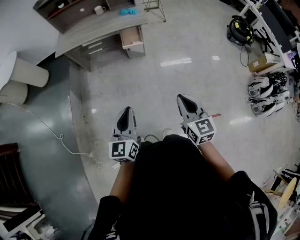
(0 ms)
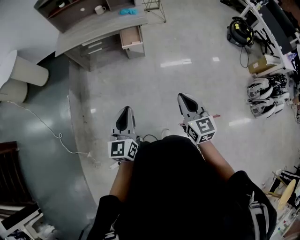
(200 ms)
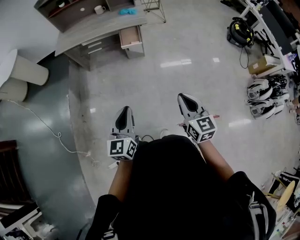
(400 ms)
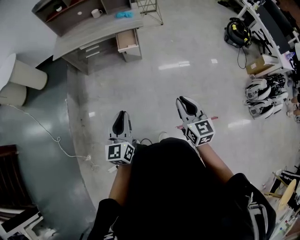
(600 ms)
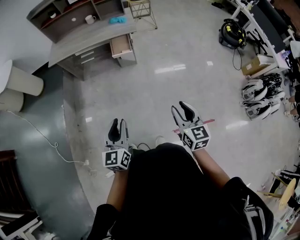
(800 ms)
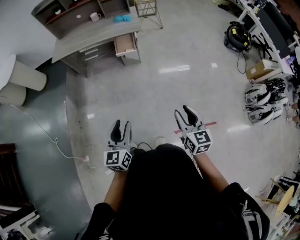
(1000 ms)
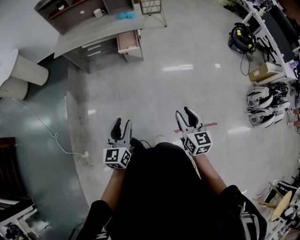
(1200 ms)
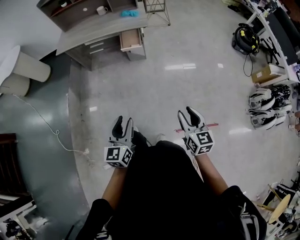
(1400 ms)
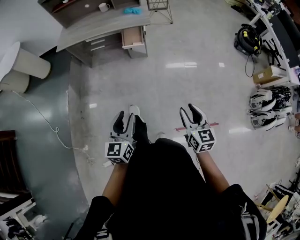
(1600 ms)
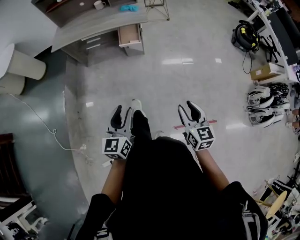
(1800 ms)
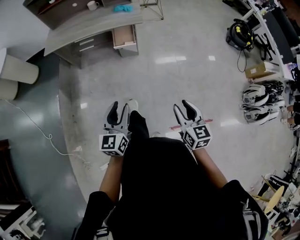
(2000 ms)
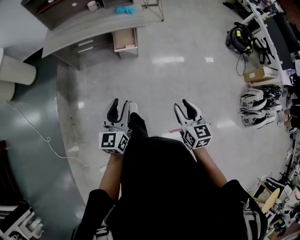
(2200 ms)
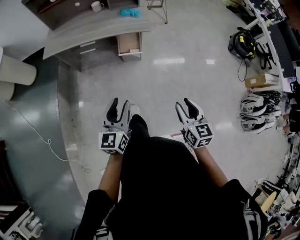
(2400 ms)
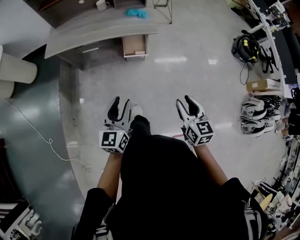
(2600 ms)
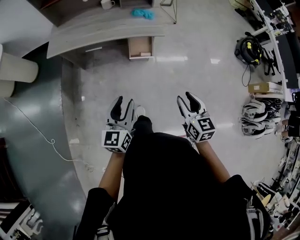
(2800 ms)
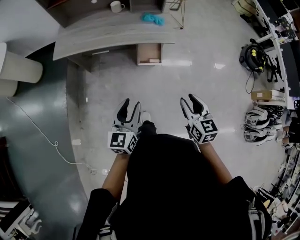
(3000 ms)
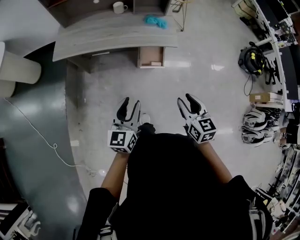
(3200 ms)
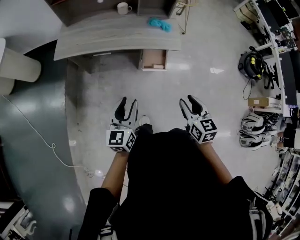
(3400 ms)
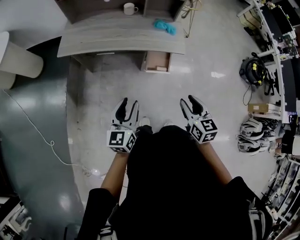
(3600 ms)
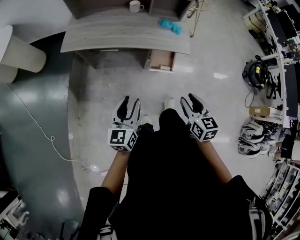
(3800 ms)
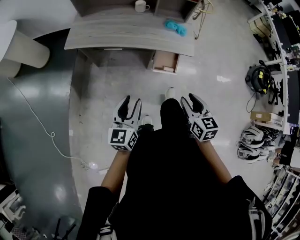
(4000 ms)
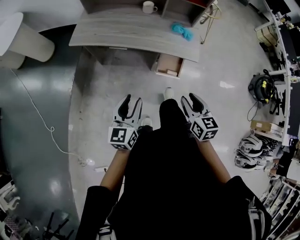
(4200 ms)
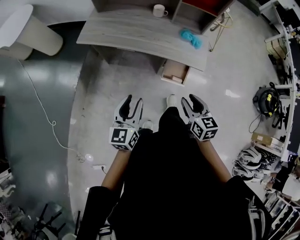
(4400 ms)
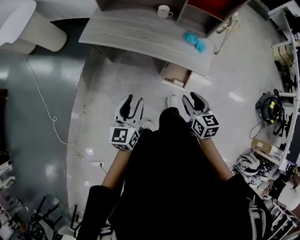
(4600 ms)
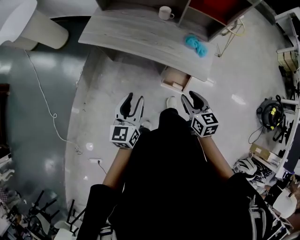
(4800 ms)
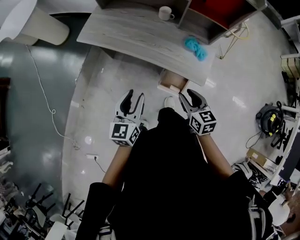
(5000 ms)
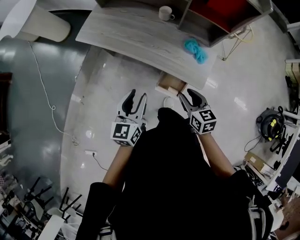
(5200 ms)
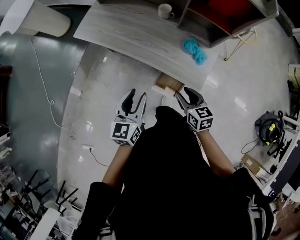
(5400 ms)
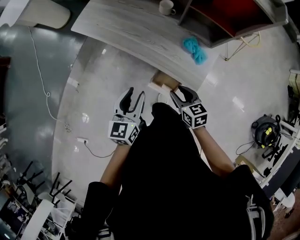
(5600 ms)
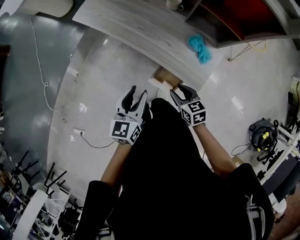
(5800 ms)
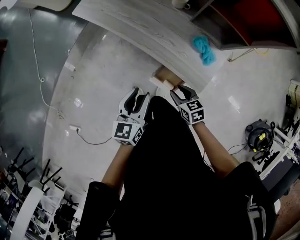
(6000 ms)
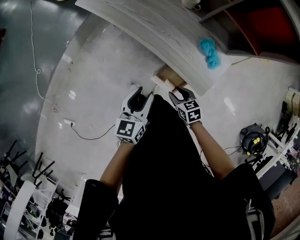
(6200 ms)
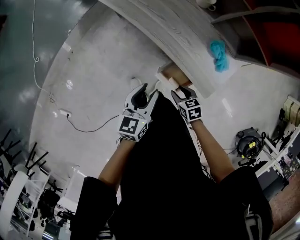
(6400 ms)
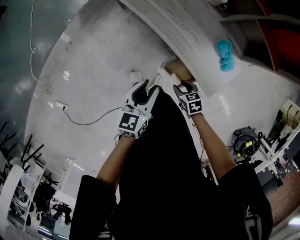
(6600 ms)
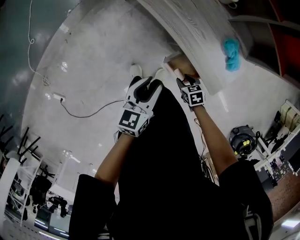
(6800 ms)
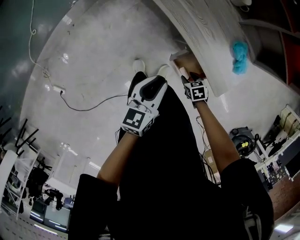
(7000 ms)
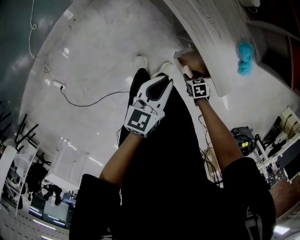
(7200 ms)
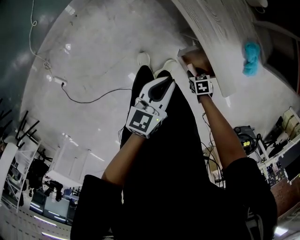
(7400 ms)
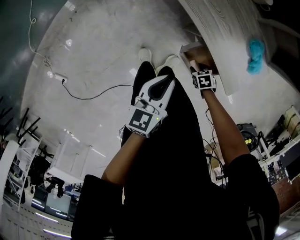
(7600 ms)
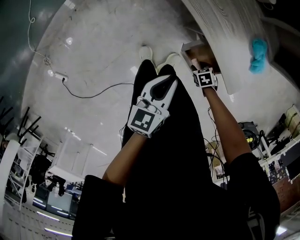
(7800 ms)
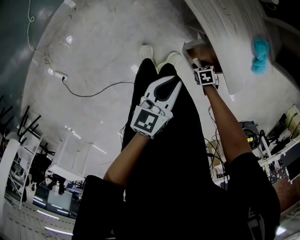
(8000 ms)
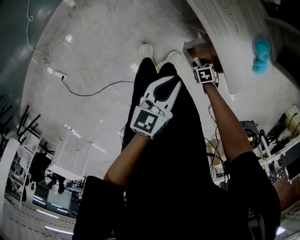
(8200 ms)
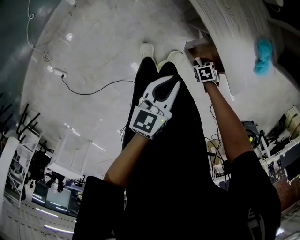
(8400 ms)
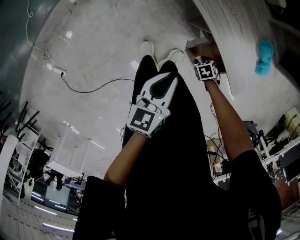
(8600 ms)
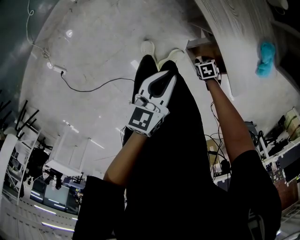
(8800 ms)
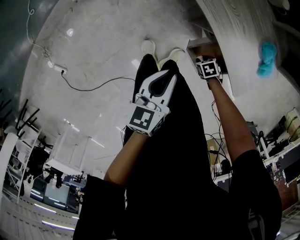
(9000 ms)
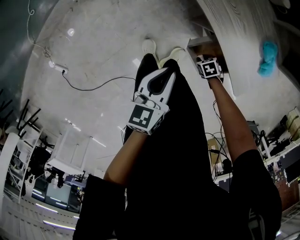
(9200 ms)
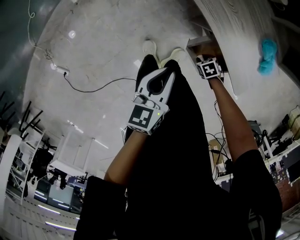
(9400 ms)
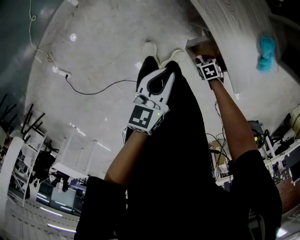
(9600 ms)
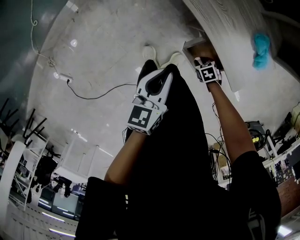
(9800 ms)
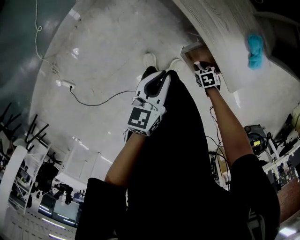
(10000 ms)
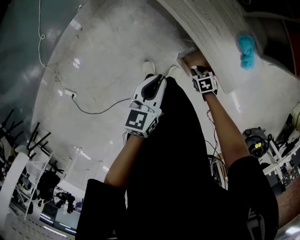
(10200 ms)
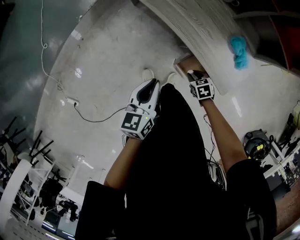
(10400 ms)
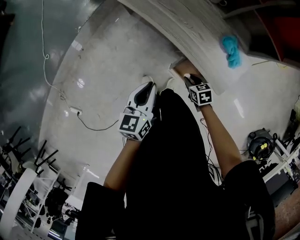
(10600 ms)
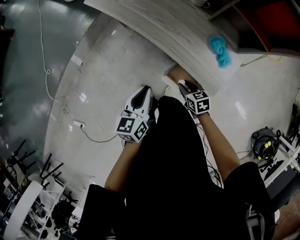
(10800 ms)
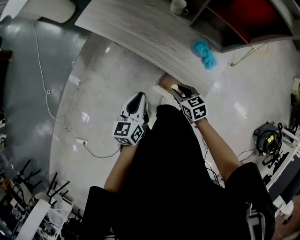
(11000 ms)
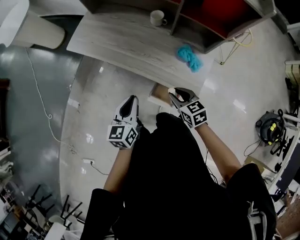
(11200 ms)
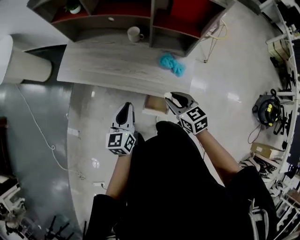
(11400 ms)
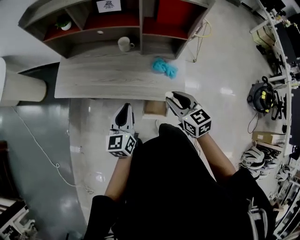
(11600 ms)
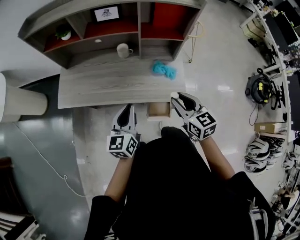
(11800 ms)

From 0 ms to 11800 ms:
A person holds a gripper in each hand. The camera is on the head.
From 0 ms to 1400 ms: The right gripper is displaced to the right and downward by some 15 cm, and opens up. The left gripper goes roughly 10 cm to the right and downward, and opens up.
From 1400 ms to 3000 ms: The pair of grippers is taken forward and to the left, some 40 cm.
From 3000 ms to 4400 ms: The two grippers go about 15 cm forward and to the left.
From 4400 ms to 6000 ms: The left gripper ends up approximately 25 cm from where it was, and turns by roughly 20 degrees. Meanwhile the right gripper changes place by some 30 cm, and turns by approximately 40 degrees.
From 6000 ms to 7400 ms: The right gripper shifts roughly 25 cm downward, and turns by some 30 degrees, while the left gripper heads downward, covering some 10 cm, and closes.
From 7400 ms to 8800 ms: The left gripper changes place by roughly 5 cm, while the right gripper goes some 5 cm downward.
From 8800 ms to 10400 ms: The left gripper heads upward, covering approximately 10 cm. The right gripper travels upward by about 15 cm, and turns by approximately 20 degrees.
From 10400 ms to 11800 ms: The left gripper moves upward, roughly 20 cm, and rotates roughly 40 degrees. The right gripper shifts some 50 cm upward, and tilts its fingers roughly 40 degrees upward.

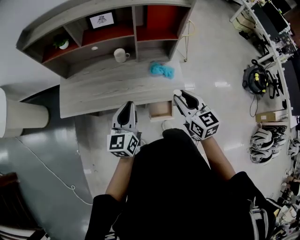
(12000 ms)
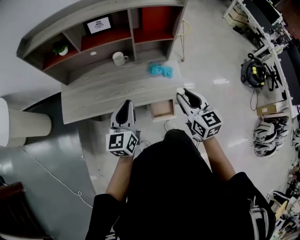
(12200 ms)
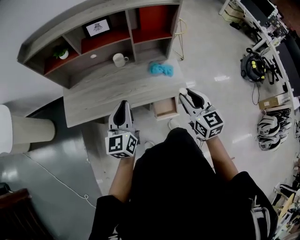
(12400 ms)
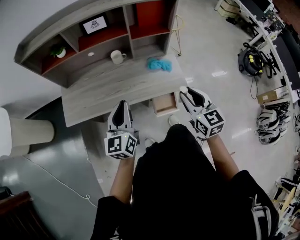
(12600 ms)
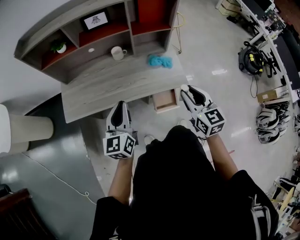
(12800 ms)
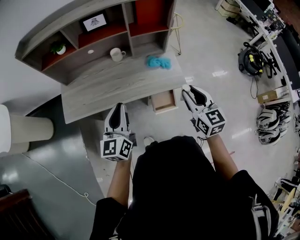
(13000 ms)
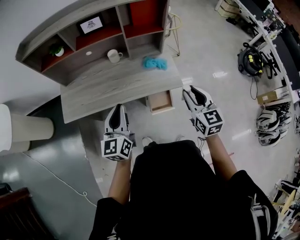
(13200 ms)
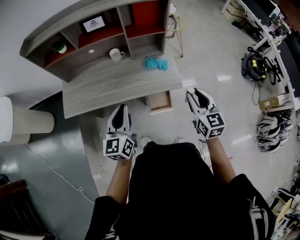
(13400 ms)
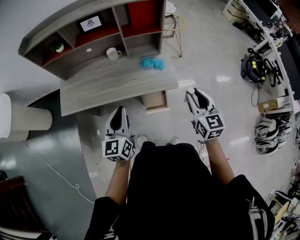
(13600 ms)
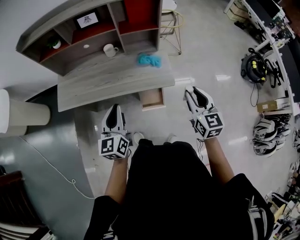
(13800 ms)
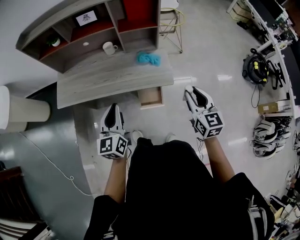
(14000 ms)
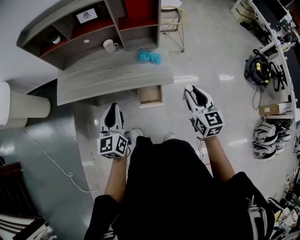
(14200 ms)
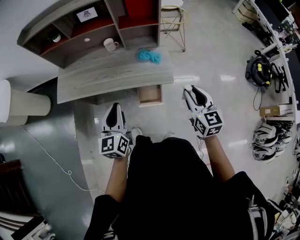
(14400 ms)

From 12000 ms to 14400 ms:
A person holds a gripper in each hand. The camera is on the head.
From 12000 ms to 13200 ms: The right gripper shifts some 10 cm backward and to the right; the left gripper goes about 10 cm backward.
From 13200 ms to 14400 ms: The right gripper travels to the right by roughly 15 cm, while the left gripper shifts roughly 10 cm to the right and backward.

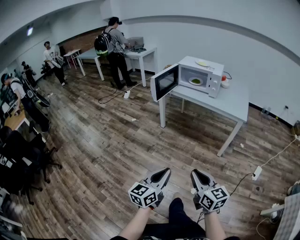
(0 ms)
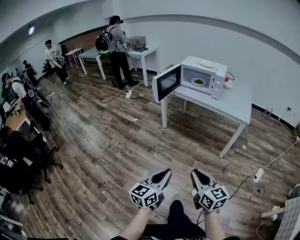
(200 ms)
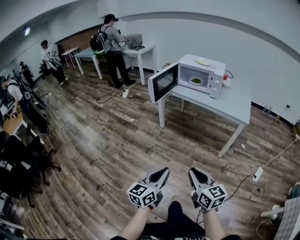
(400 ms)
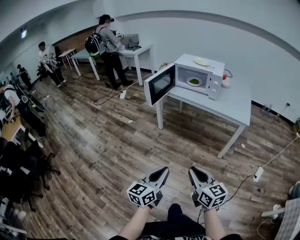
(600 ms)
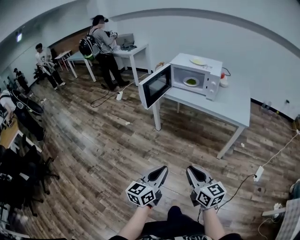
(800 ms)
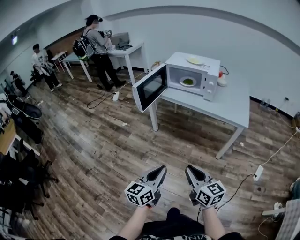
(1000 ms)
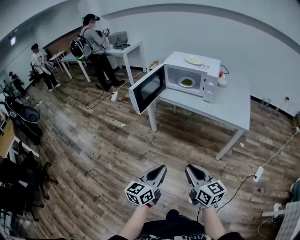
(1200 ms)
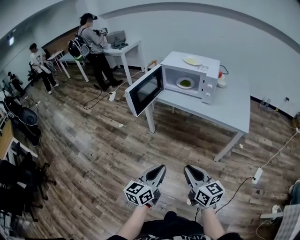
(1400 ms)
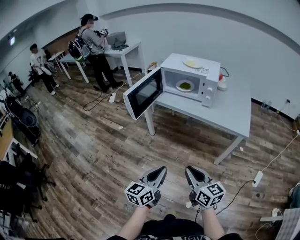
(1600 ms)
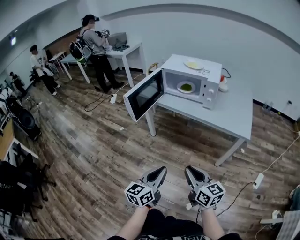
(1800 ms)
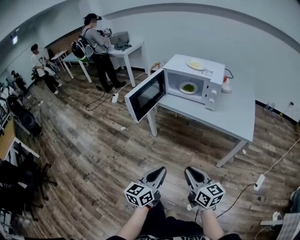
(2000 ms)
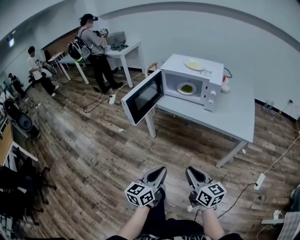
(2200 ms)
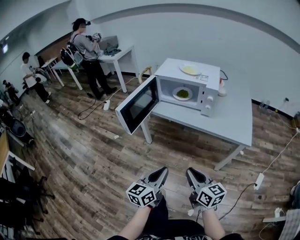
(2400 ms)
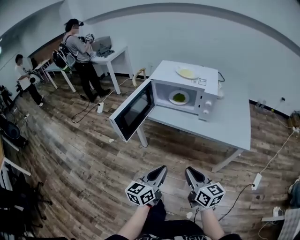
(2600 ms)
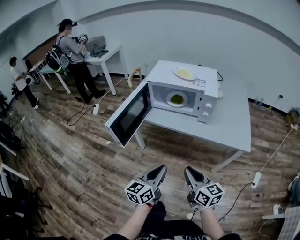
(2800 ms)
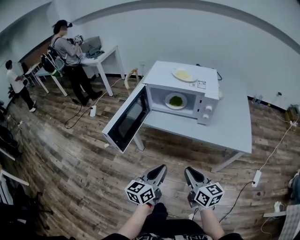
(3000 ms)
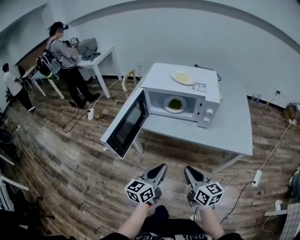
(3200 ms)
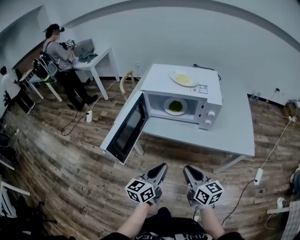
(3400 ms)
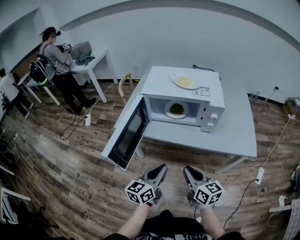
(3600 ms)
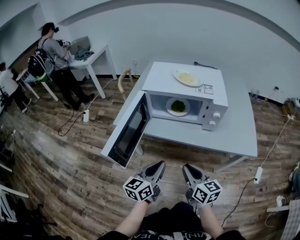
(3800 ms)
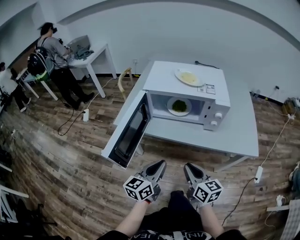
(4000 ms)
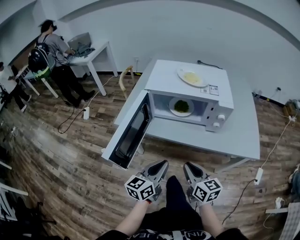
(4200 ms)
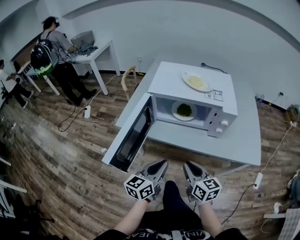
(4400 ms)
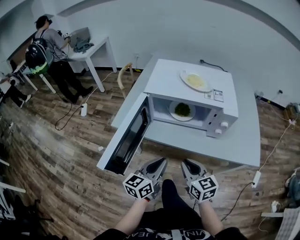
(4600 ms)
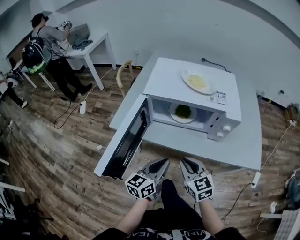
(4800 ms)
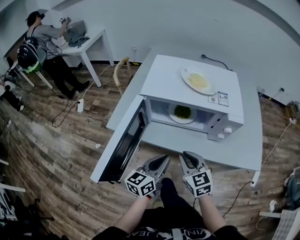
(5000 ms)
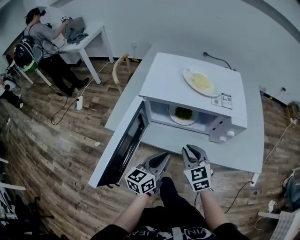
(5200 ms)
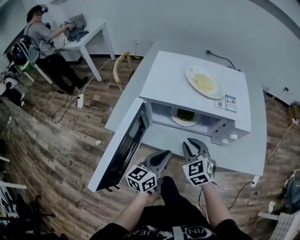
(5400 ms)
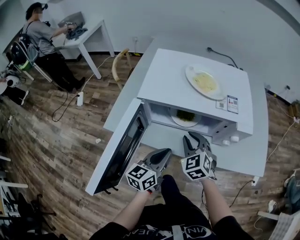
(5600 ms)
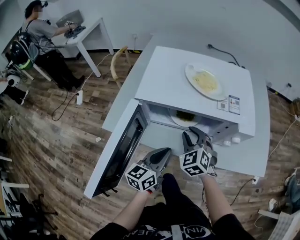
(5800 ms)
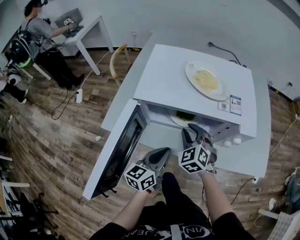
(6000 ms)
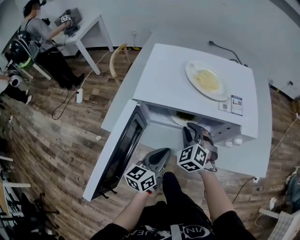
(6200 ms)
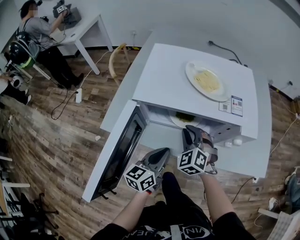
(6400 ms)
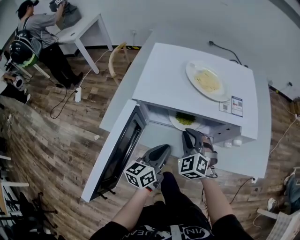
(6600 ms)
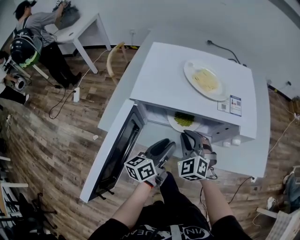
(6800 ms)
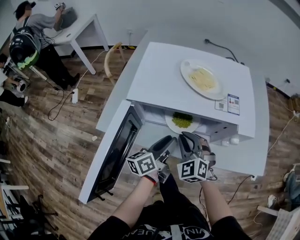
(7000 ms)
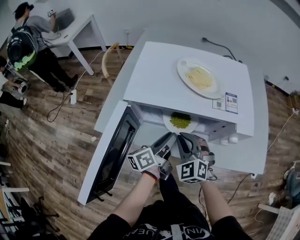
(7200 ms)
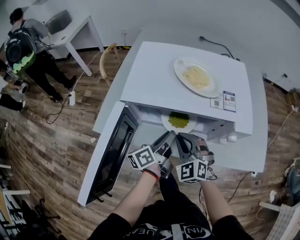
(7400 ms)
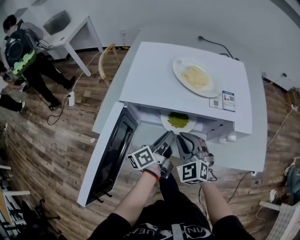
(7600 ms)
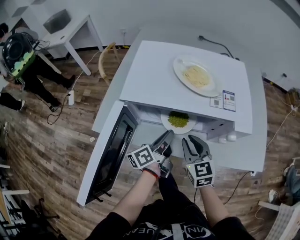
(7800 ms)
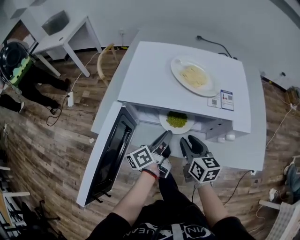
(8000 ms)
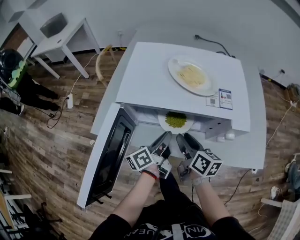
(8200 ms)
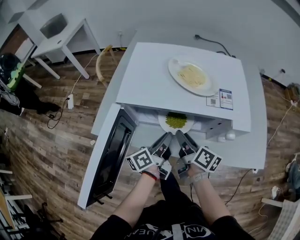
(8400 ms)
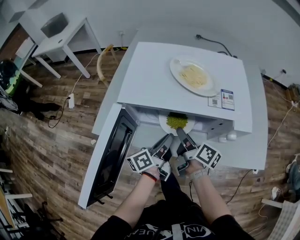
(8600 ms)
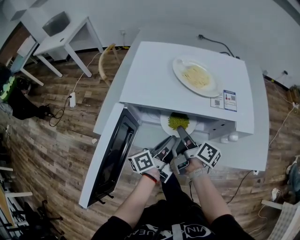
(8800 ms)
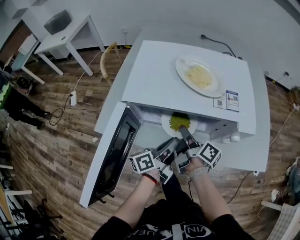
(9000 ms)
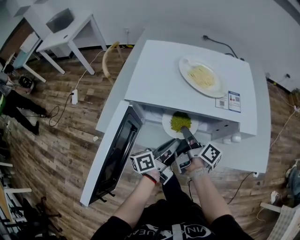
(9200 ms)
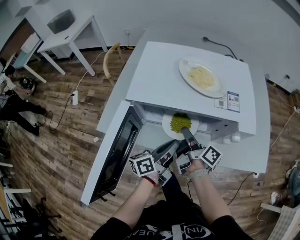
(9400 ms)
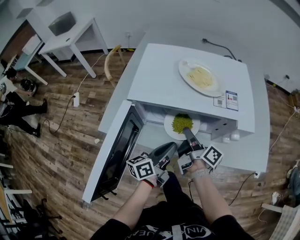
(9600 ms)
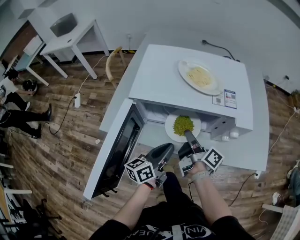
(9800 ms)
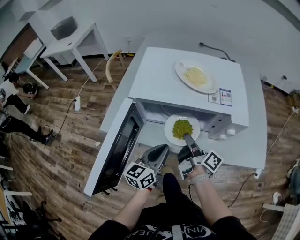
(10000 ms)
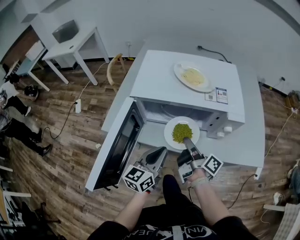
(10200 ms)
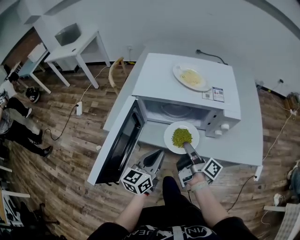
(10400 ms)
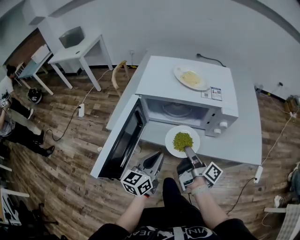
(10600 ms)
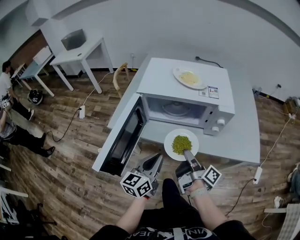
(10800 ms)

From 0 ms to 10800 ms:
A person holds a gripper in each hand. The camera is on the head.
From 0 ms to 1600 ms: The two grippers go roughly 25 cm forward.
From 1600 ms to 3000 ms: Both grippers travel together forward, about 20 cm.
From 3000 ms to 4600 ms: The right gripper heads forward and to the left, covering about 20 cm, while the left gripper is displaced forward by some 15 cm.
From 4600 ms to 6200 ms: The right gripper goes roughly 20 cm forward, and rolls counterclockwise, seen from behind, by about 50 degrees, while the left gripper goes about 10 cm forward.
From 6200 ms to 7800 ms: The left gripper moves forward, approximately 10 cm, rotates approximately 40 degrees, and opens, then closes again. Meanwhile the right gripper is displaced backward by about 5 cm, and rotates approximately 40 degrees.
From 7800 ms to 9200 ms: The right gripper moves forward, about 5 cm, rotates around the line of its fingers by some 80 degrees, clockwise from behind, and opens, then closes once more.
From 9200 ms to 10800 ms: The right gripper is displaced backward by about 15 cm, while the left gripper shifts roughly 15 cm backward and upward, and rolls clockwise, seen from behind, by roughly 40 degrees.
